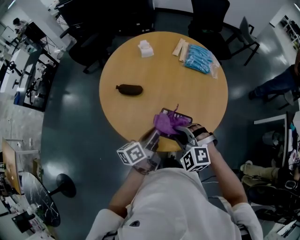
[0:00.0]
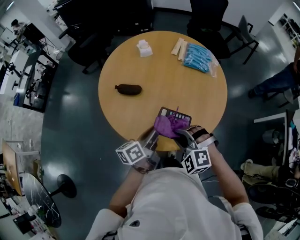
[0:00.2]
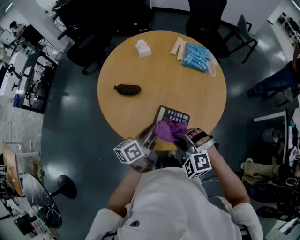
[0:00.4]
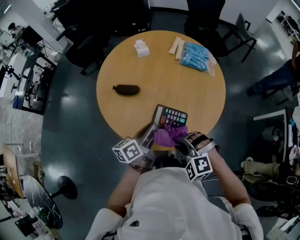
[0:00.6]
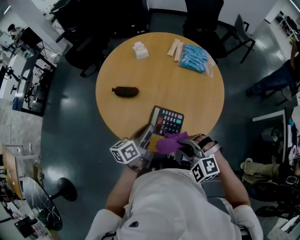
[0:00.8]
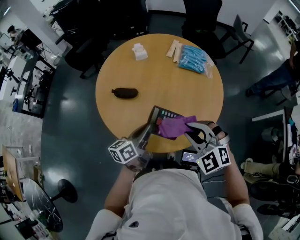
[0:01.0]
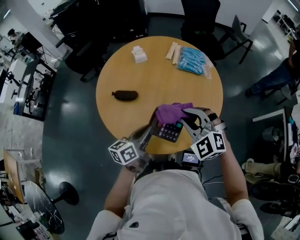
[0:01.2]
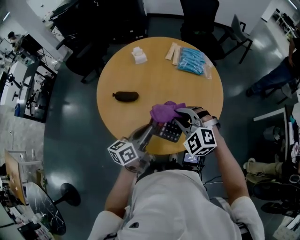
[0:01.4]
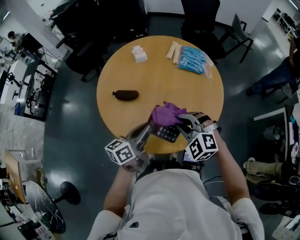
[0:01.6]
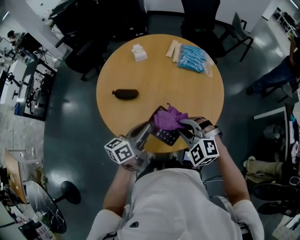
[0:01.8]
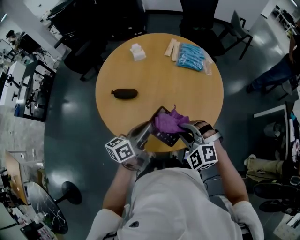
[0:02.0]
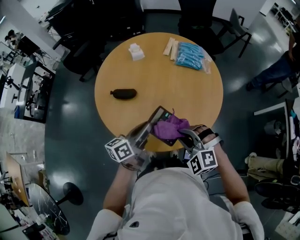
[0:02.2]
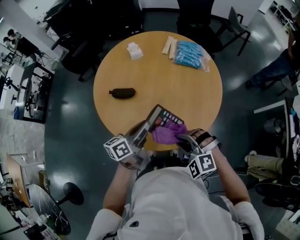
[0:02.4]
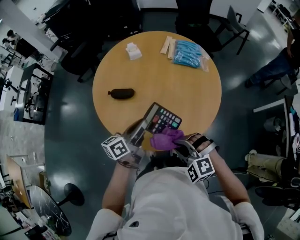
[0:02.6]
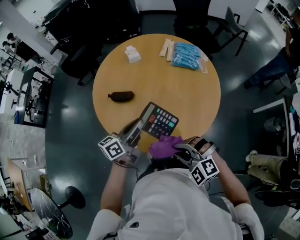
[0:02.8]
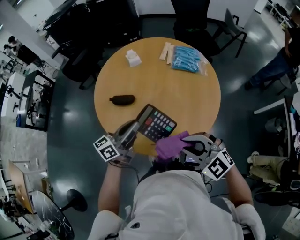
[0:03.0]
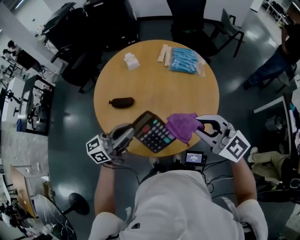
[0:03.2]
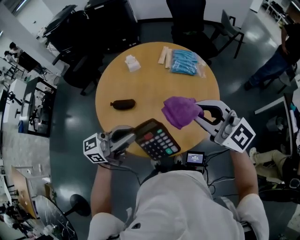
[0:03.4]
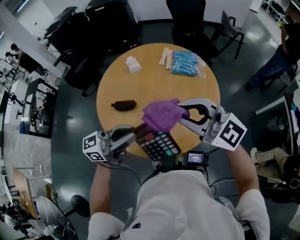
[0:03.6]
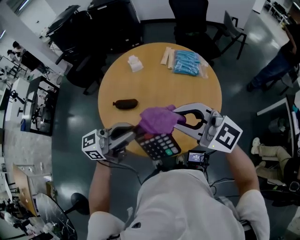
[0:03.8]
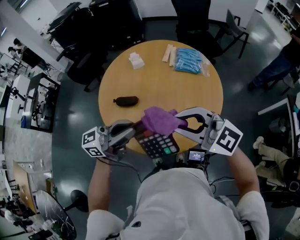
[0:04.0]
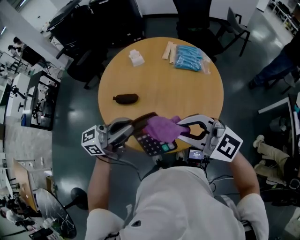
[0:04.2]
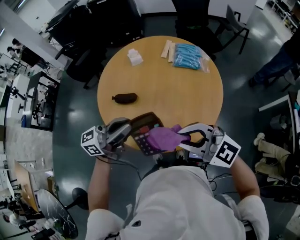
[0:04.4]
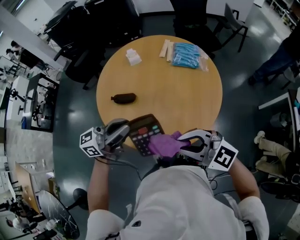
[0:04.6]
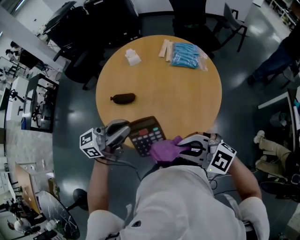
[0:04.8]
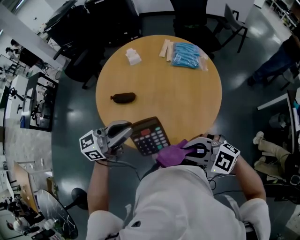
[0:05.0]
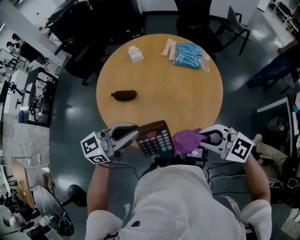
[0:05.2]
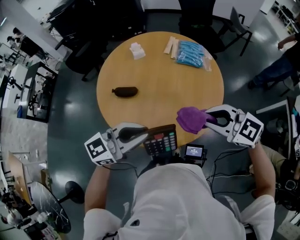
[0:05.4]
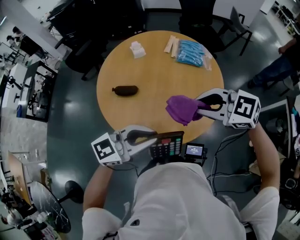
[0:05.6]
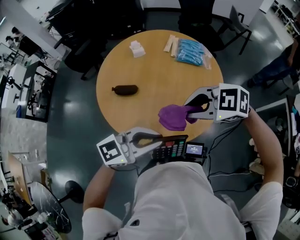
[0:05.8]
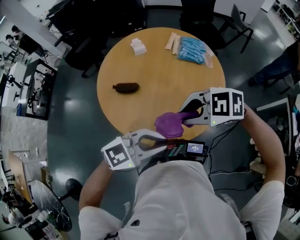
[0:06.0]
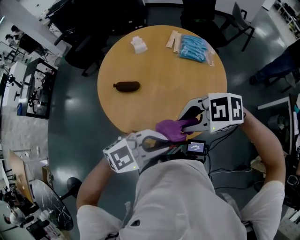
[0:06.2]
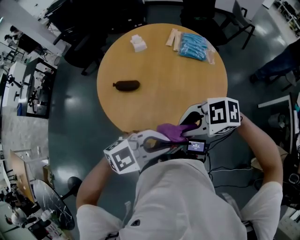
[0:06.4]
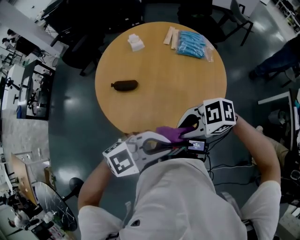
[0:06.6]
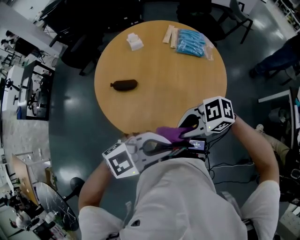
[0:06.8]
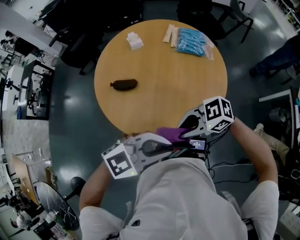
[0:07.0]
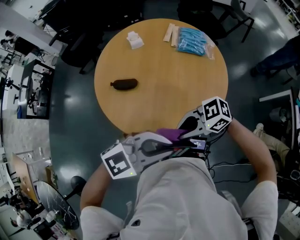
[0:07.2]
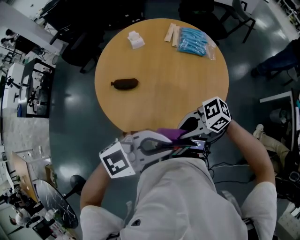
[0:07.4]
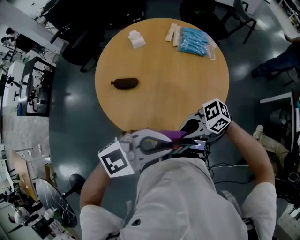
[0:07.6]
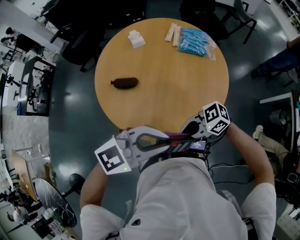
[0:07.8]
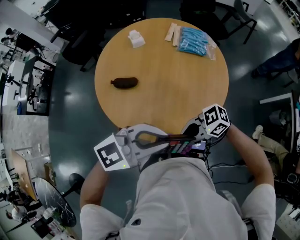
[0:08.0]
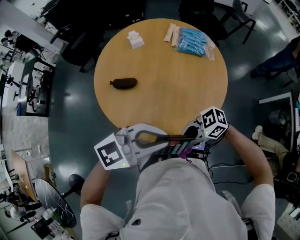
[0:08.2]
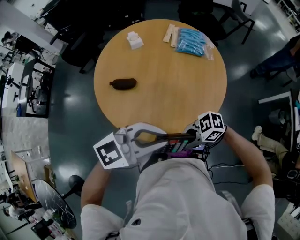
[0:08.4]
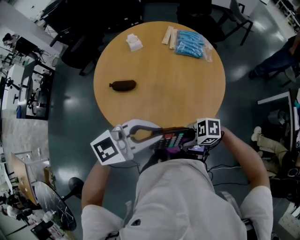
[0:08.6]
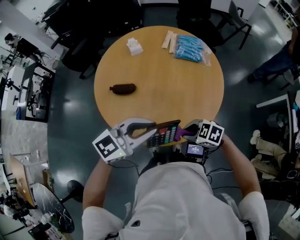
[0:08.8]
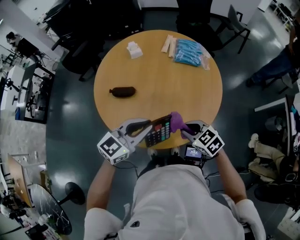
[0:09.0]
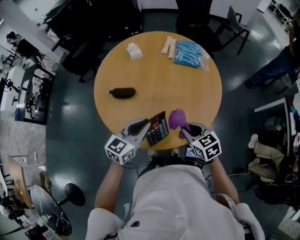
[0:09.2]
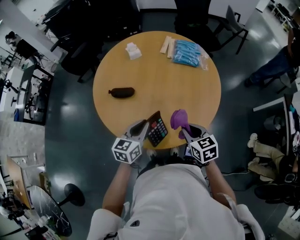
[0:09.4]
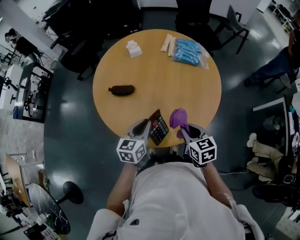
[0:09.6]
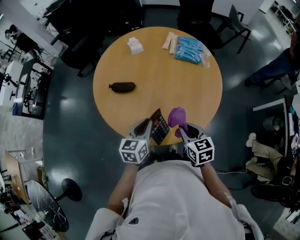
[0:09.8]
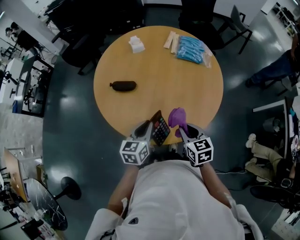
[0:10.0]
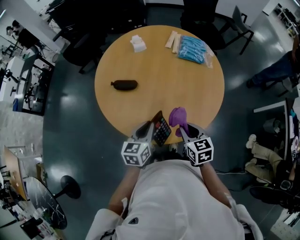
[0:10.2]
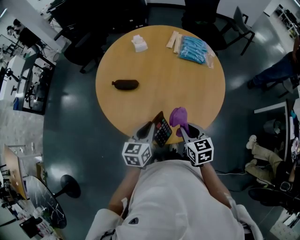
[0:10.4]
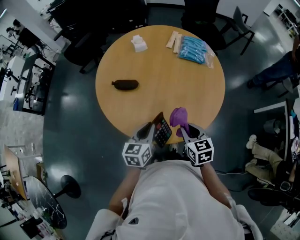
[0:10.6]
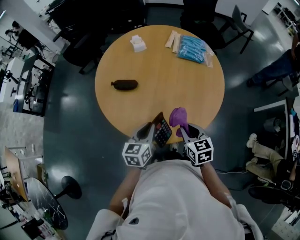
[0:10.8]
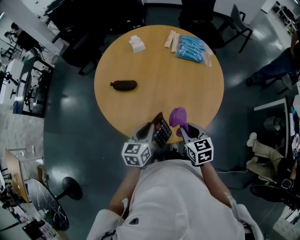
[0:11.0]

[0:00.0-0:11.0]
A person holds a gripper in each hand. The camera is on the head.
0.0 to 1.6 s: The left gripper changes place by approximately 5 cm.
1.6 to 3.2 s: The right gripper goes roughly 15 cm upward and to the right, and changes its angle by approximately 40 degrees. Meanwhile the left gripper moves upward, roughly 10 cm, and rotates some 30 degrees.
3.2 to 4.8 s: The right gripper changes place by about 10 cm, and turns by approximately 30 degrees.
4.8 to 6.2 s: The right gripper rotates roughly 40 degrees, while the left gripper changes place by approximately 15 cm, and tilts its fingers approximately 30 degrees downward.
6.2 to 7.8 s: The right gripper heads downward, covering approximately 10 cm, and swivels roughly 30 degrees. Meanwhile the left gripper shifts by roughly 5 cm.
7.8 to 9.4 s: The right gripper changes place by about 10 cm, and turns by about 80 degrees; the left gripper travels downward by roughly 20 cm, and turns by roughly 60 degrees.
9.4 to 11.0 s: The grippers move only a little.

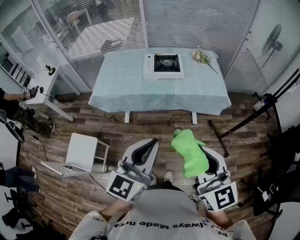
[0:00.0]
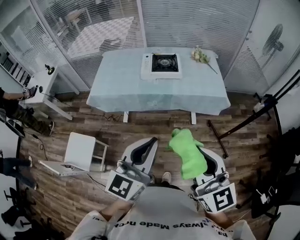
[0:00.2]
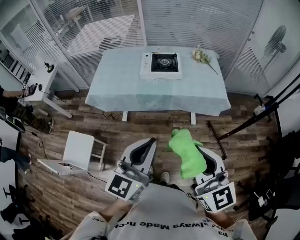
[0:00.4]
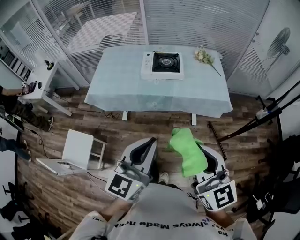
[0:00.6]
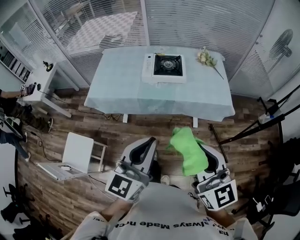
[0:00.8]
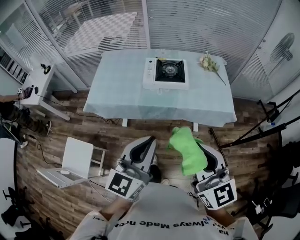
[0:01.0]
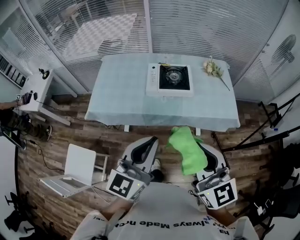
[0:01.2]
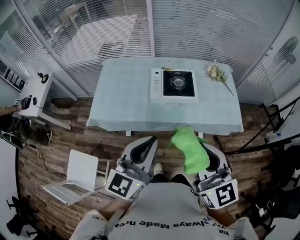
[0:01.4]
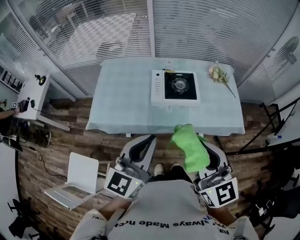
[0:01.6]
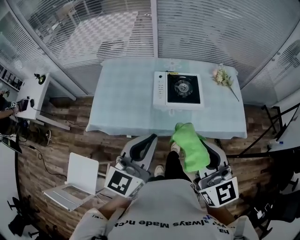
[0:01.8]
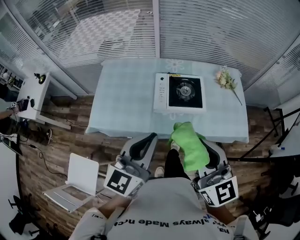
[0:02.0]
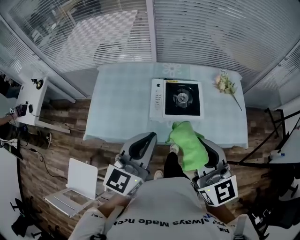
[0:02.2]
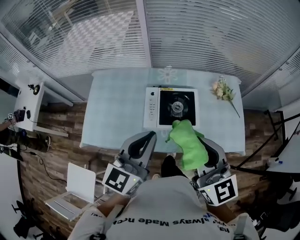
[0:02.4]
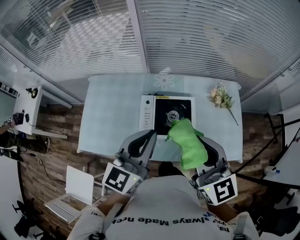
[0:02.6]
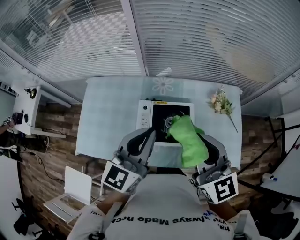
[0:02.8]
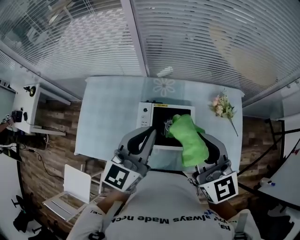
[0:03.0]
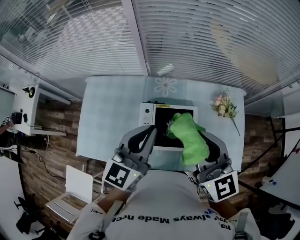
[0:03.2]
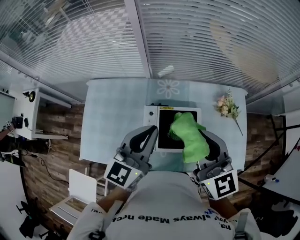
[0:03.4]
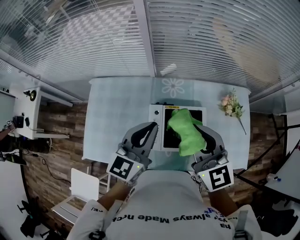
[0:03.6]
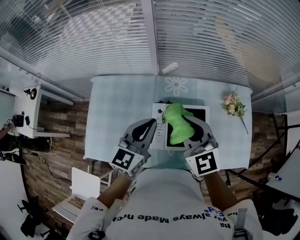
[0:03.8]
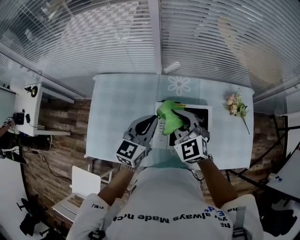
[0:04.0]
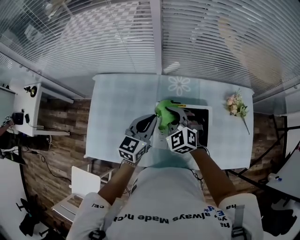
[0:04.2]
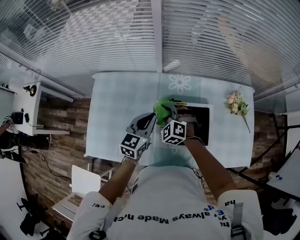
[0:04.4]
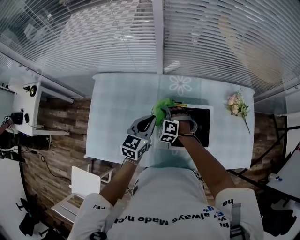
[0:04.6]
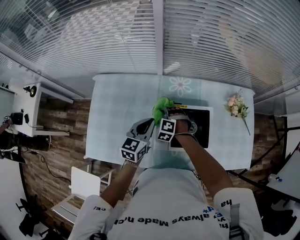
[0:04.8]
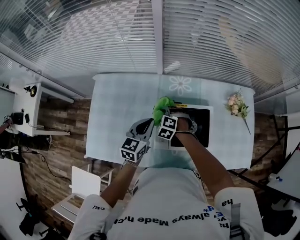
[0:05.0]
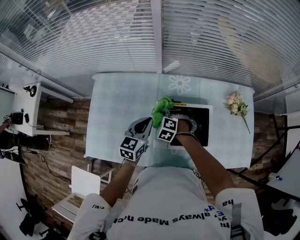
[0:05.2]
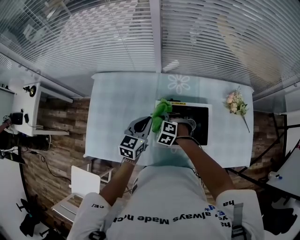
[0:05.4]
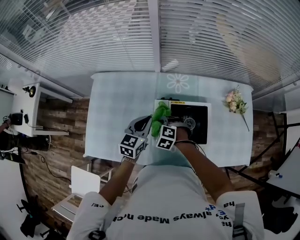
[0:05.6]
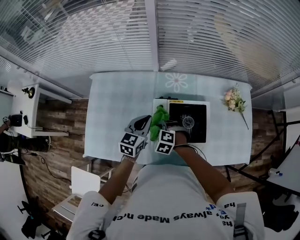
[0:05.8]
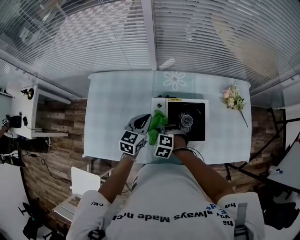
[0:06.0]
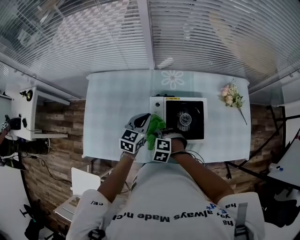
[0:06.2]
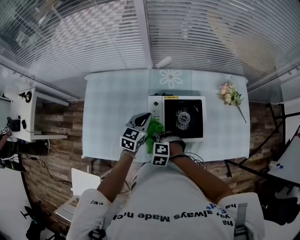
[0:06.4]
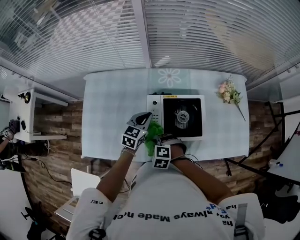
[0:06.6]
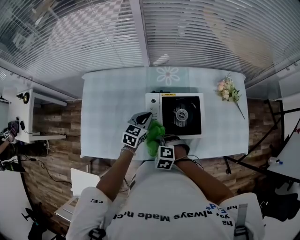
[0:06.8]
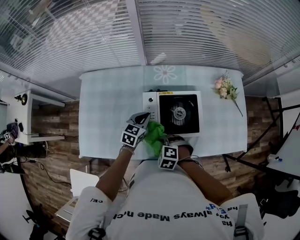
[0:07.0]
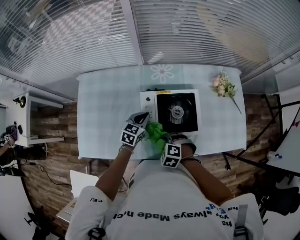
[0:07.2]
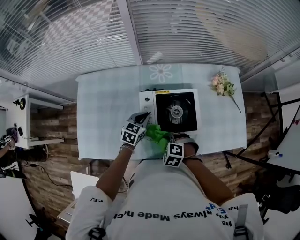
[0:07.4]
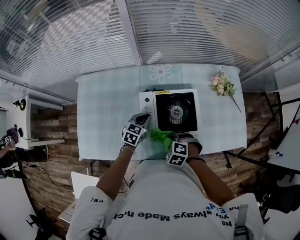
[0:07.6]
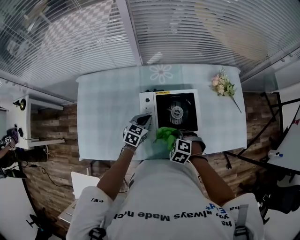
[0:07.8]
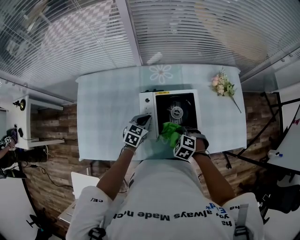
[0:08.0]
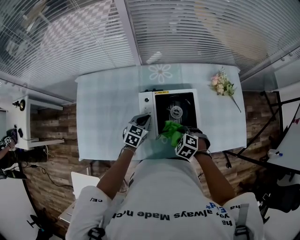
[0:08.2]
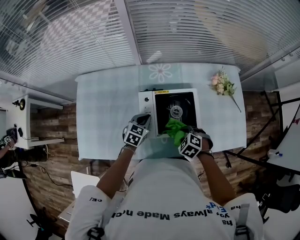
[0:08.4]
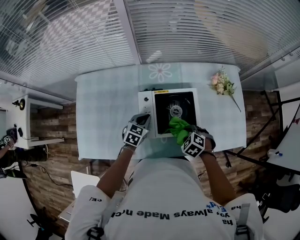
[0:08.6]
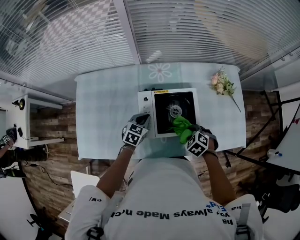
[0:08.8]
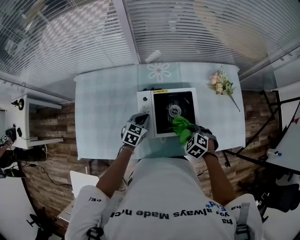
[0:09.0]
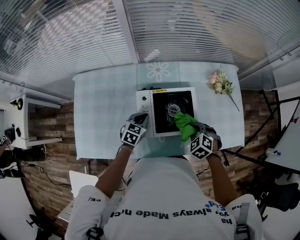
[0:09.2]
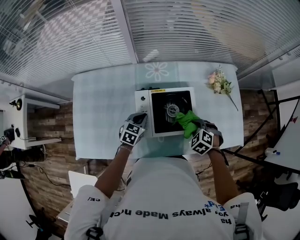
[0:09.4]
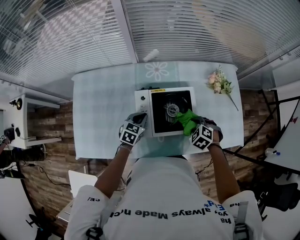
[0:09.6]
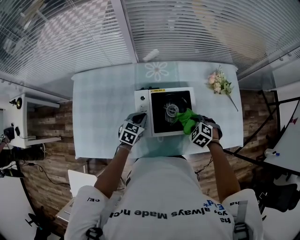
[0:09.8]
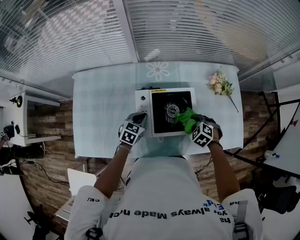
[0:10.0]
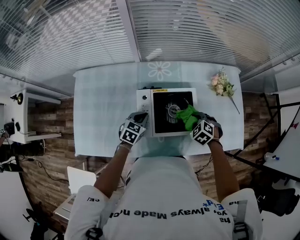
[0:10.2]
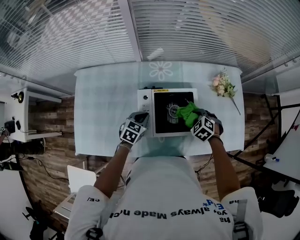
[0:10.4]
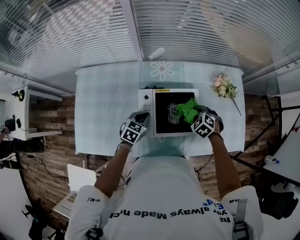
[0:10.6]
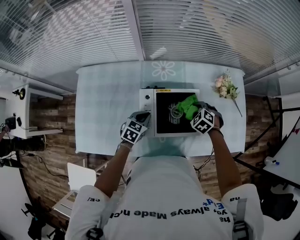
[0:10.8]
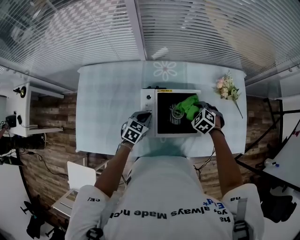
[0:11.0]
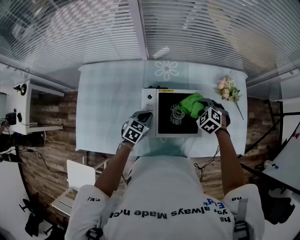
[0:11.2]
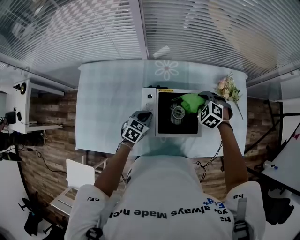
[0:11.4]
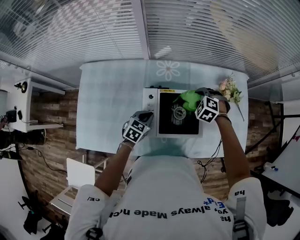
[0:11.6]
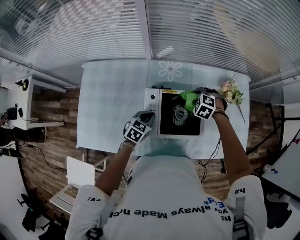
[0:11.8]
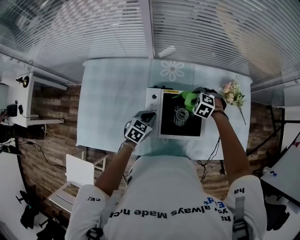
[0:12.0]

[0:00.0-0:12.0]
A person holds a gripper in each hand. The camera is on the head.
0.0 to 1.6 s: Both grippers move forward, roughly 35 cm.
1.6 to 3.0 s: The grippers both shift forward by some 35 cm.
3.0 to 4.4 s: The left gripper moves downward, to the left and forward, about 25 cm. The right gripper goes about 40 cm downward, to the left and forward, and tips its fingers downward by roughly 40 degrees.
4.4 to 6.0 s: The left gripper shifts by approximately 5 cm. The right gripper is displaced backward and downward by about 15 cm, and turns by approximately 30 degrees.
6.0 to 7.6 s: The right gripper shifts some 15 cm to the right and backward; the left gripper shifts some 10 cm downward.
7.6 to 9.0 s: The right gripper travels to the right by about 10 cm.
9.0 to 10.4 s: The right gripper moves forward, roughly 10 cm.
10.4 to 12.0 s: The right gripper shifts some 15 cm forward and to the left.

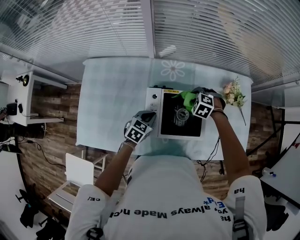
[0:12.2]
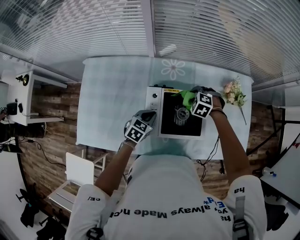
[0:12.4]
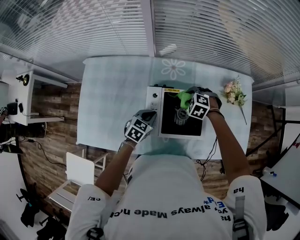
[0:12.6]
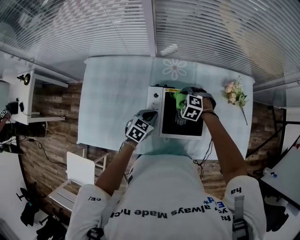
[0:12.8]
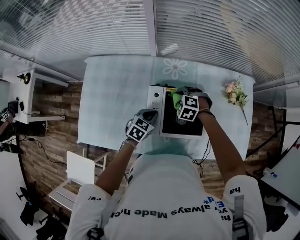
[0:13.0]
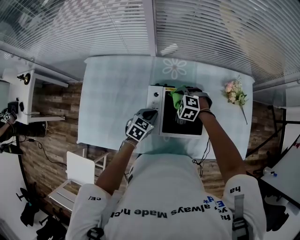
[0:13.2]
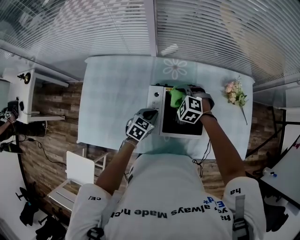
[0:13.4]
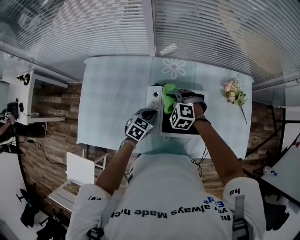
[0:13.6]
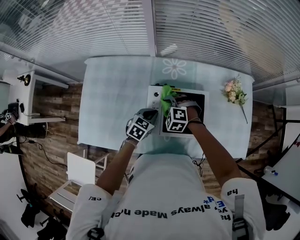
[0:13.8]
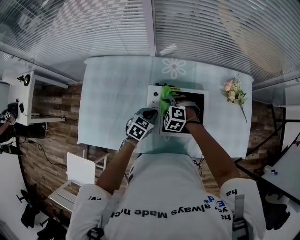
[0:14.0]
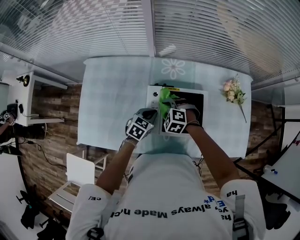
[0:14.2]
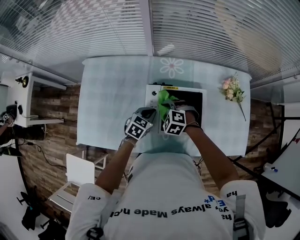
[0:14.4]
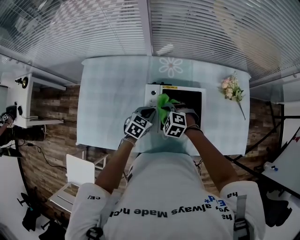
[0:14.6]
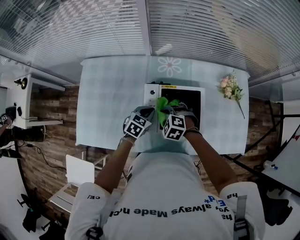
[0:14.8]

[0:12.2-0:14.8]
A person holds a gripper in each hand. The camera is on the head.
12.2 to 13.4 s: The right gripper goes roughly 10 cm to the left and upward.
13.4 to 14.8 s: The right gripper is displaced backward by about 10 cm.
